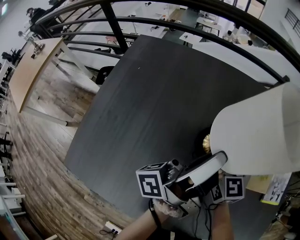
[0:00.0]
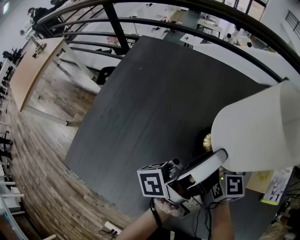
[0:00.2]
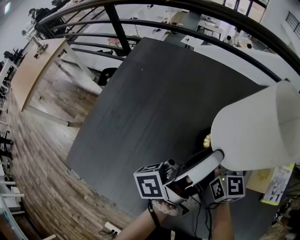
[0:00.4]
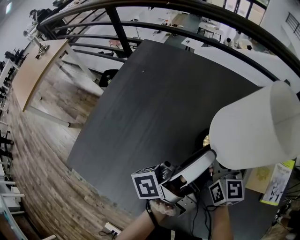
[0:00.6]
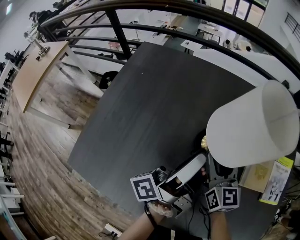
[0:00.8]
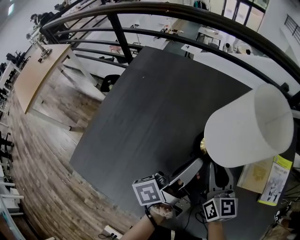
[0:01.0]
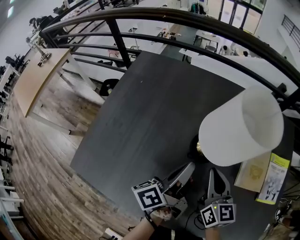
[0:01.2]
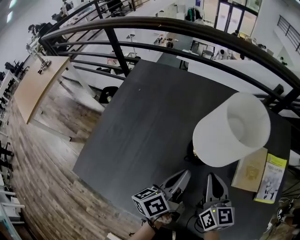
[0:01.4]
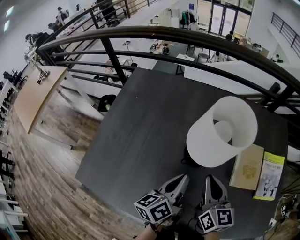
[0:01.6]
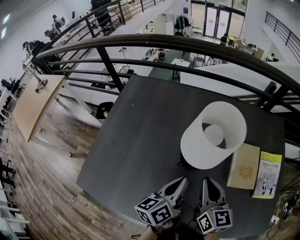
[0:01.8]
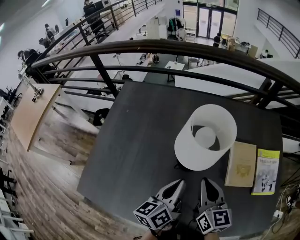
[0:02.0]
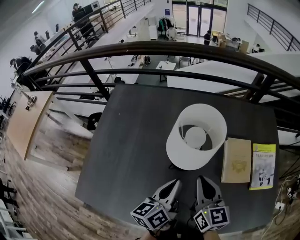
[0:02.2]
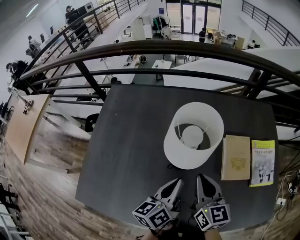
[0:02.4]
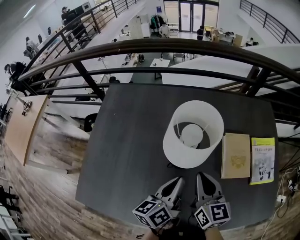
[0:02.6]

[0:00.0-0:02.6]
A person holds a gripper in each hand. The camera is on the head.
0:00.0 to 0:01.2: The right gripper ends up approximately 10 cm from where it was, and closes its fingers.
0:01.2 to 0:02.6: The right gripper shifts approximately 5 cm upward.

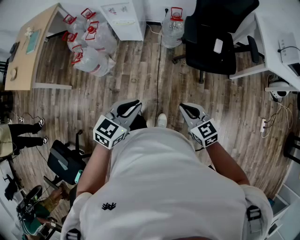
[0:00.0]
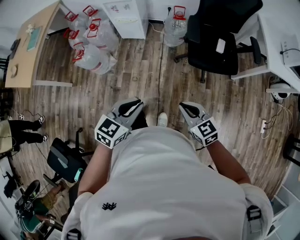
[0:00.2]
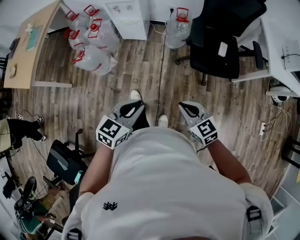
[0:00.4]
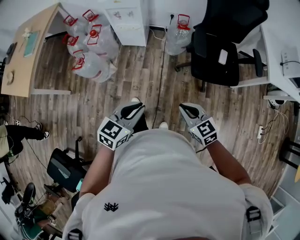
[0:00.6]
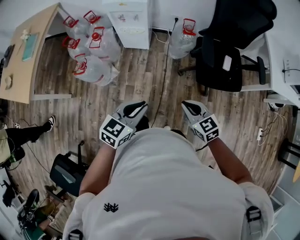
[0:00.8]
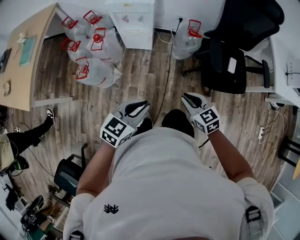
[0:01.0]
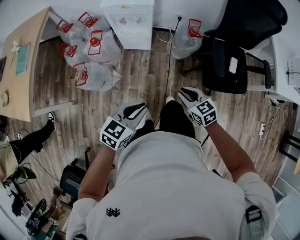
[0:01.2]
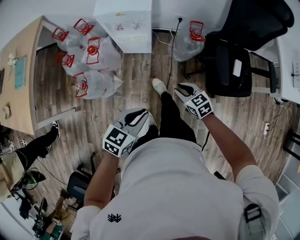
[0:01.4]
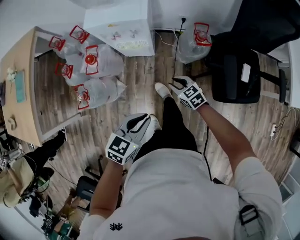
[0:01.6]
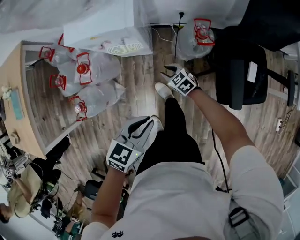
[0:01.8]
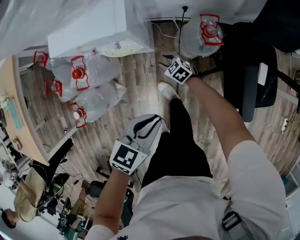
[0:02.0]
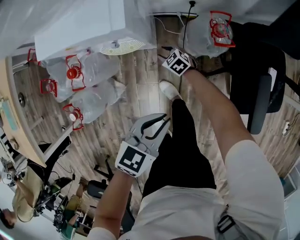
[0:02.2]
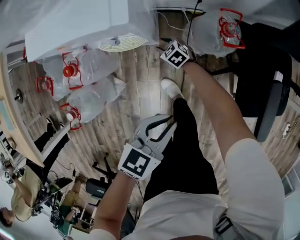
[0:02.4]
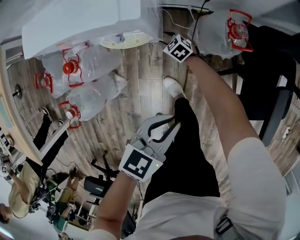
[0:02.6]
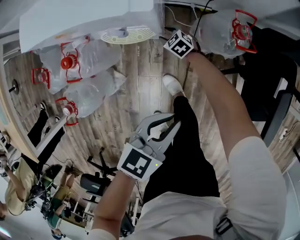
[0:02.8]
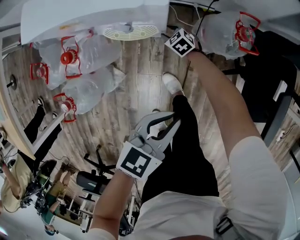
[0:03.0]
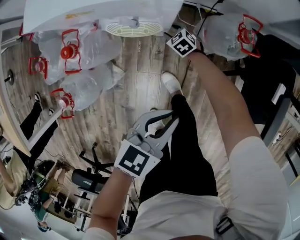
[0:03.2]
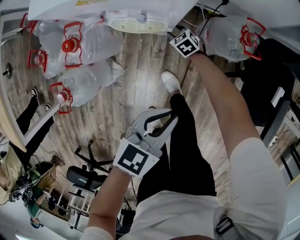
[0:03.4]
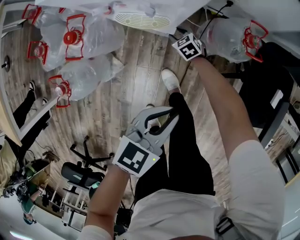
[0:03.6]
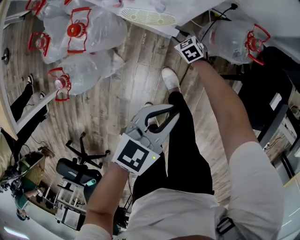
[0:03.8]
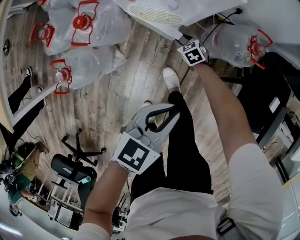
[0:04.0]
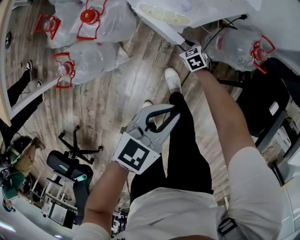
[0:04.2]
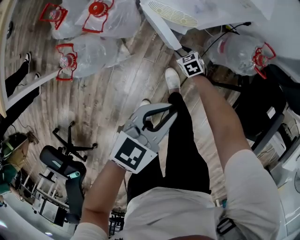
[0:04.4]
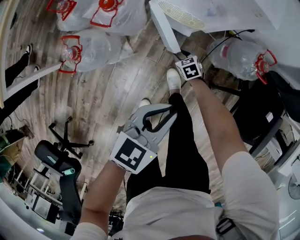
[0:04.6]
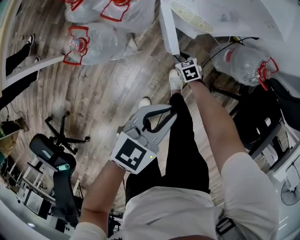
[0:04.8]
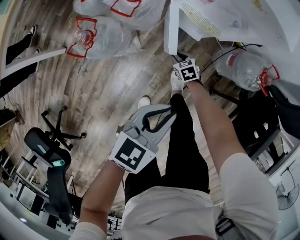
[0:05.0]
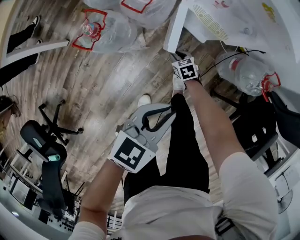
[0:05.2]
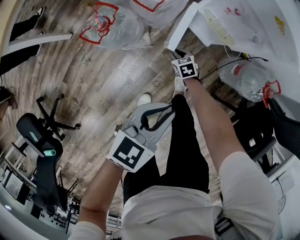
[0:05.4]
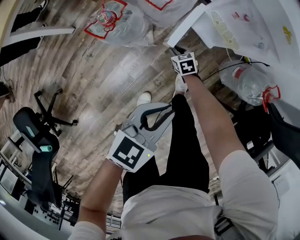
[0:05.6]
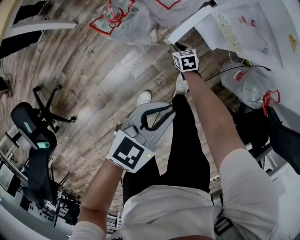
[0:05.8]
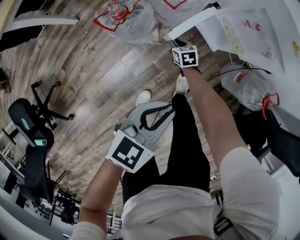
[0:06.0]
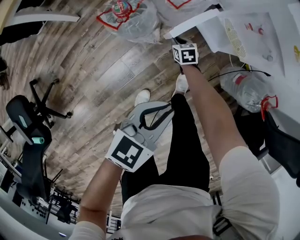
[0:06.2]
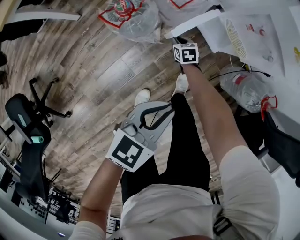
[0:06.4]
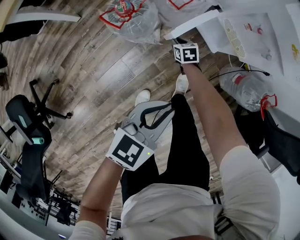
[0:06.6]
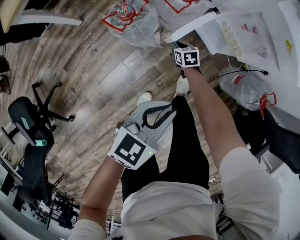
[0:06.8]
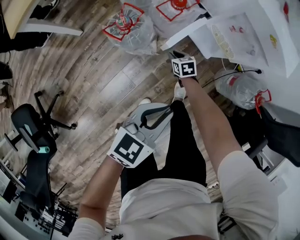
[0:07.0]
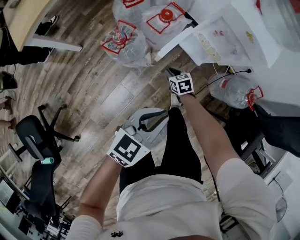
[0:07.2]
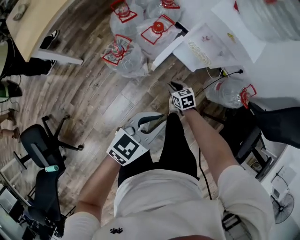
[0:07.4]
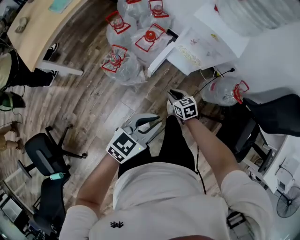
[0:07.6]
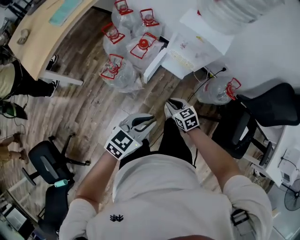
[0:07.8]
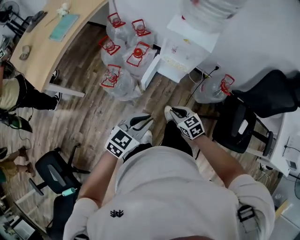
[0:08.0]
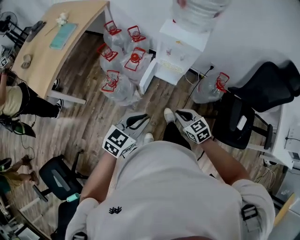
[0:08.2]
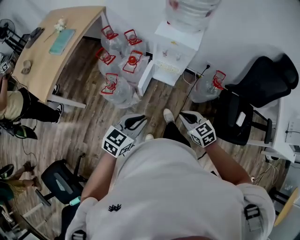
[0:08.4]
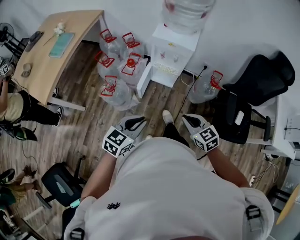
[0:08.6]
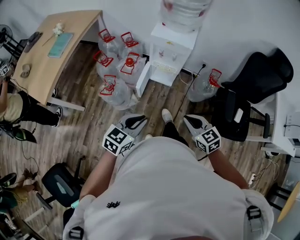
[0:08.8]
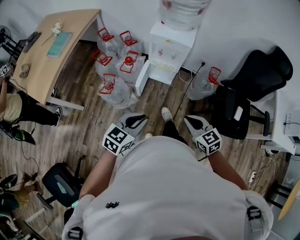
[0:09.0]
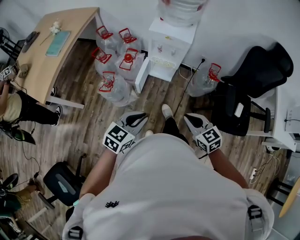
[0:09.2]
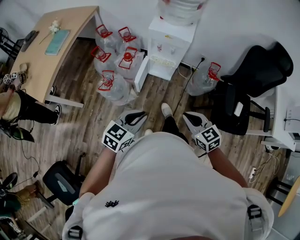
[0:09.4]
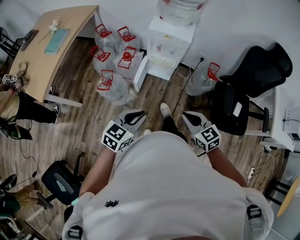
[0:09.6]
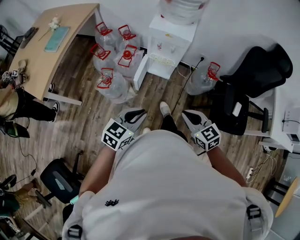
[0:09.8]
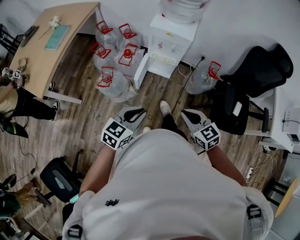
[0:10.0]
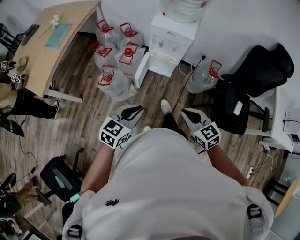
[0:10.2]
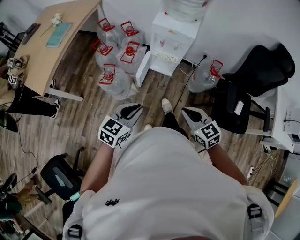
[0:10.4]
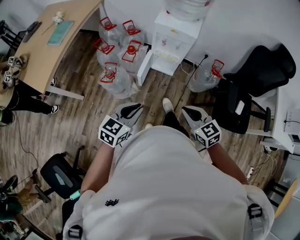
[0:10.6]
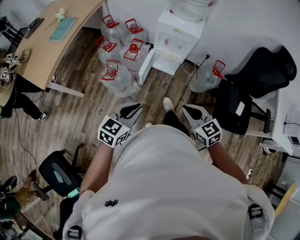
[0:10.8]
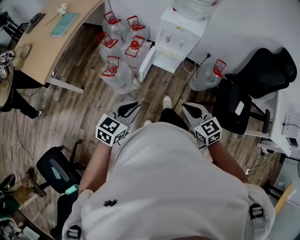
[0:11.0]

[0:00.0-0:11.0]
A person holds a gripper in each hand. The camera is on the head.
0:00.0 to 0:01.6: The left gripper travels forward and to the left by approximately 40 cm, while the right gripper shifts about 60 cm forward, downward and to the left, and opens.
0:01.6 to 0:03.2: The left gripper heads downward and forward, covering roughly 20 cm. The right gripper travels downward and forward by about 40 cm.
0:03.2 to 0:04.8: The right gripper heads backward and to the left, covering some 20 cm; the left gripper is displaced to the left and backward by some 15 cm, and swivels some 20 degrees.
0:04.8 to 0:06.2: Both grippers move to the left, about 15 cm.
0:06.2 to 0:07.8: The left gripper moves upward and backward, approximately 20 cm, and changes its angle by about 20 degrees. Meanwhile the right gripper travels upward and backward by roughly 40 cm.
0:07.8 to 0:09.4: The right gripper is displaced upward, backward and to the right by about 30 cm, and swivels approximately 20 degrees, while the left gripper moves backward and upward, approximately 10 cm.
0:09.4 to 0:11.0: The right gripper shifts by approximately 5 cm. The left gripper shifts roughly 5 cm to the left.

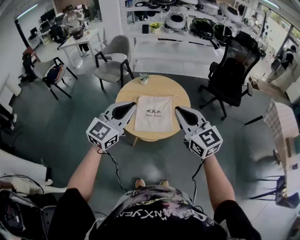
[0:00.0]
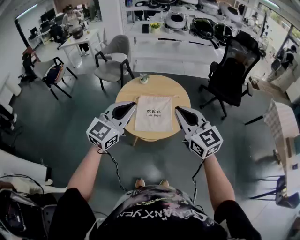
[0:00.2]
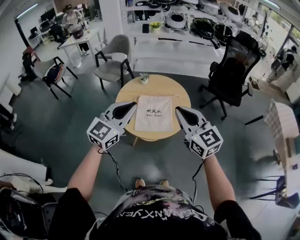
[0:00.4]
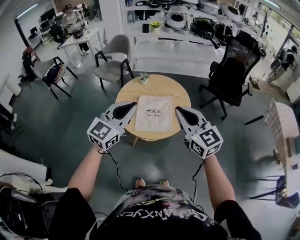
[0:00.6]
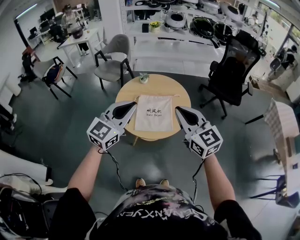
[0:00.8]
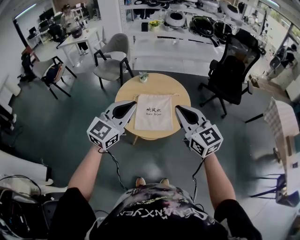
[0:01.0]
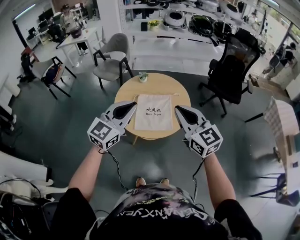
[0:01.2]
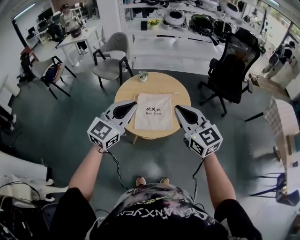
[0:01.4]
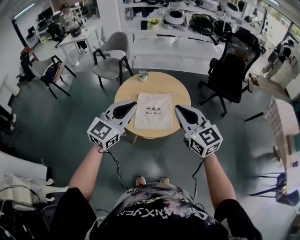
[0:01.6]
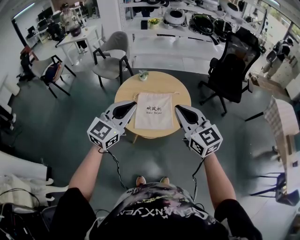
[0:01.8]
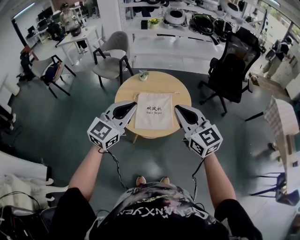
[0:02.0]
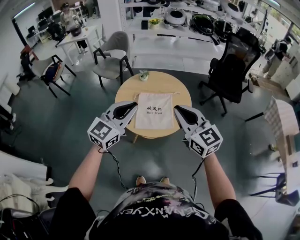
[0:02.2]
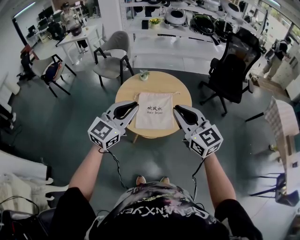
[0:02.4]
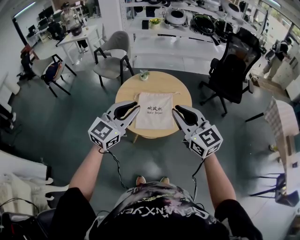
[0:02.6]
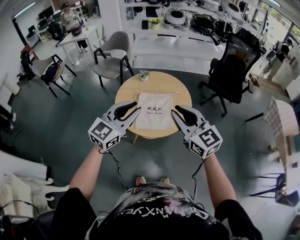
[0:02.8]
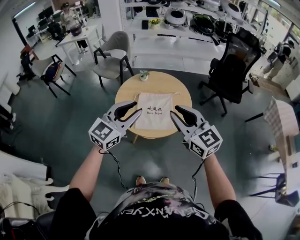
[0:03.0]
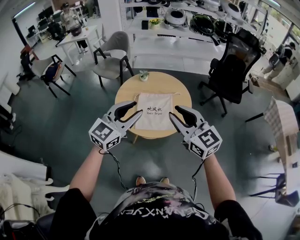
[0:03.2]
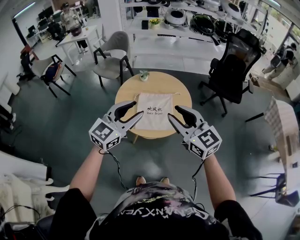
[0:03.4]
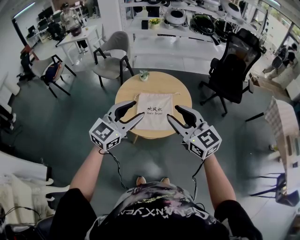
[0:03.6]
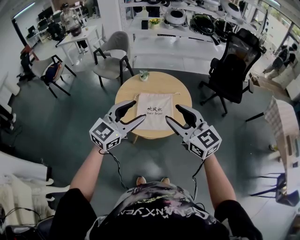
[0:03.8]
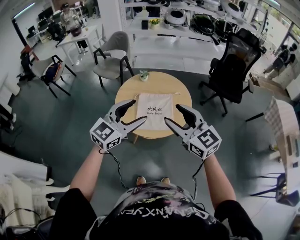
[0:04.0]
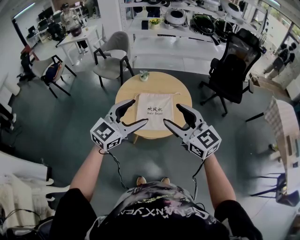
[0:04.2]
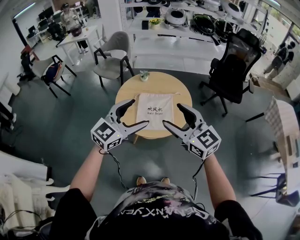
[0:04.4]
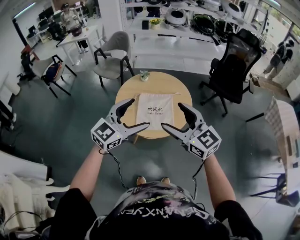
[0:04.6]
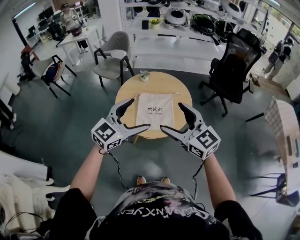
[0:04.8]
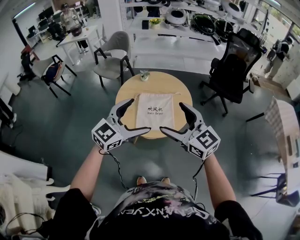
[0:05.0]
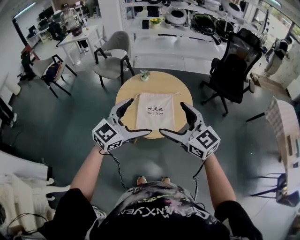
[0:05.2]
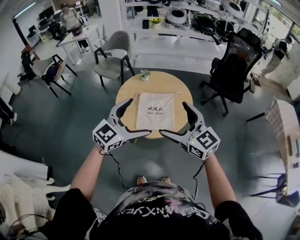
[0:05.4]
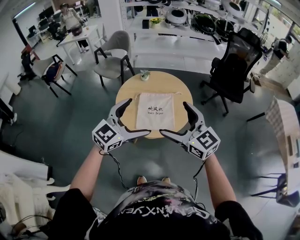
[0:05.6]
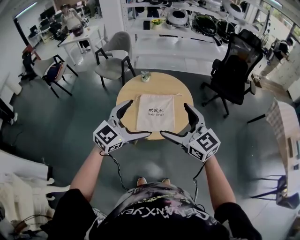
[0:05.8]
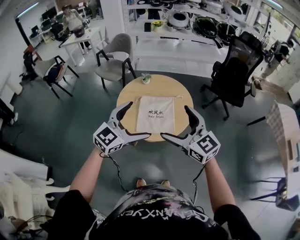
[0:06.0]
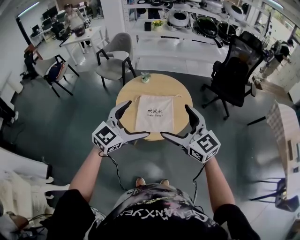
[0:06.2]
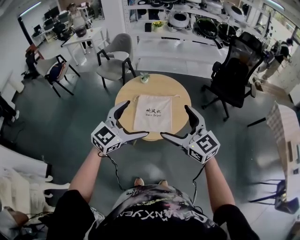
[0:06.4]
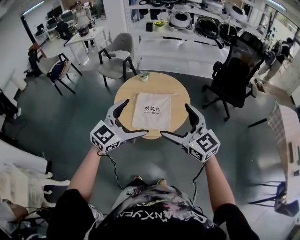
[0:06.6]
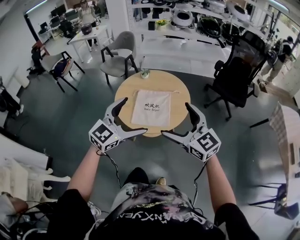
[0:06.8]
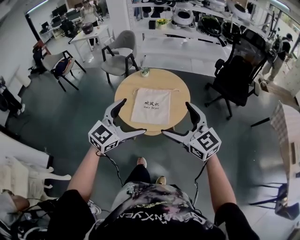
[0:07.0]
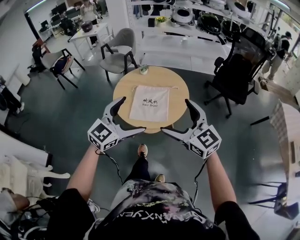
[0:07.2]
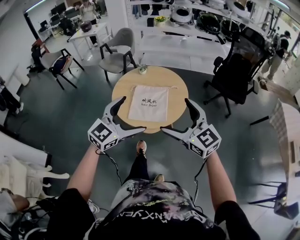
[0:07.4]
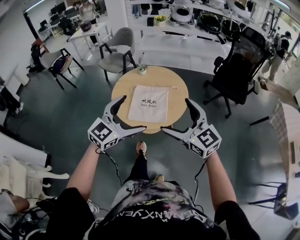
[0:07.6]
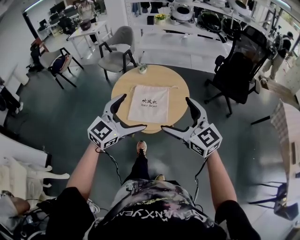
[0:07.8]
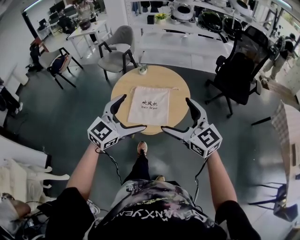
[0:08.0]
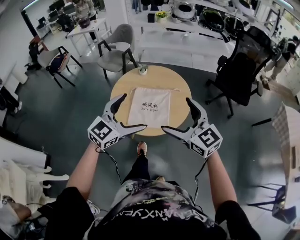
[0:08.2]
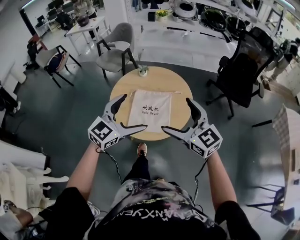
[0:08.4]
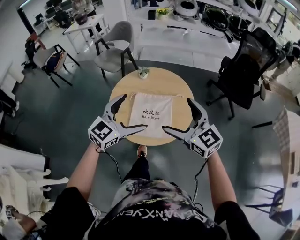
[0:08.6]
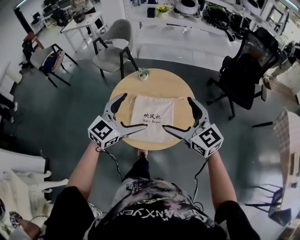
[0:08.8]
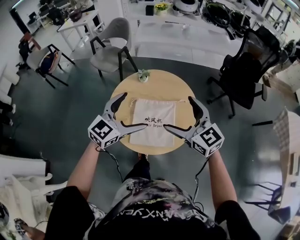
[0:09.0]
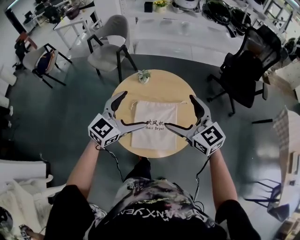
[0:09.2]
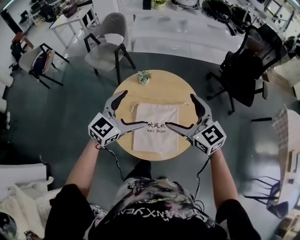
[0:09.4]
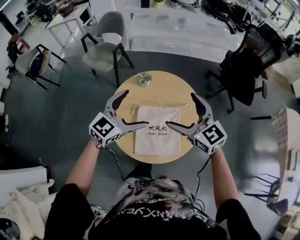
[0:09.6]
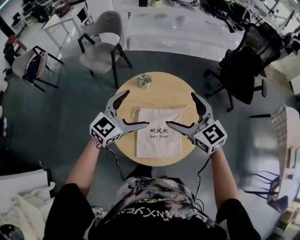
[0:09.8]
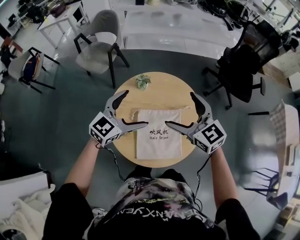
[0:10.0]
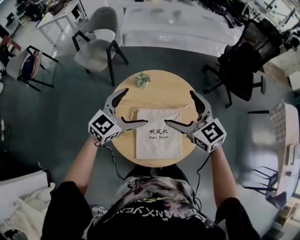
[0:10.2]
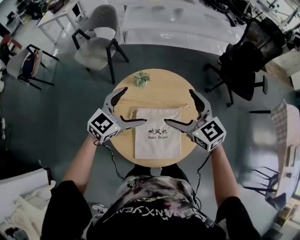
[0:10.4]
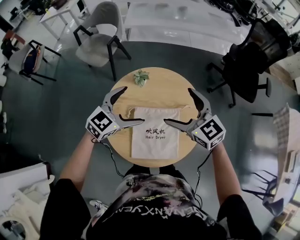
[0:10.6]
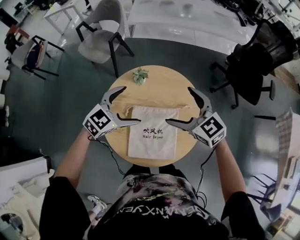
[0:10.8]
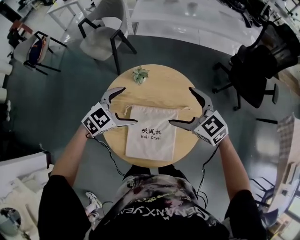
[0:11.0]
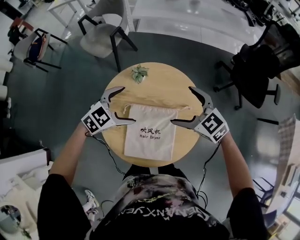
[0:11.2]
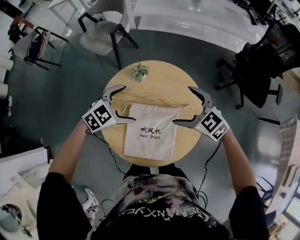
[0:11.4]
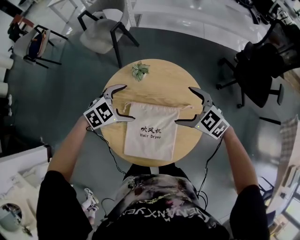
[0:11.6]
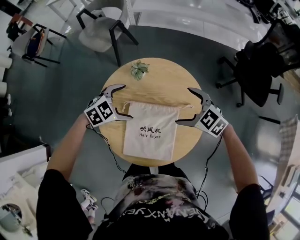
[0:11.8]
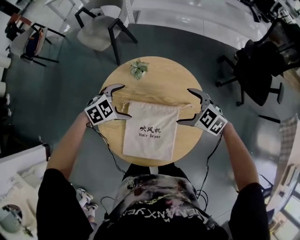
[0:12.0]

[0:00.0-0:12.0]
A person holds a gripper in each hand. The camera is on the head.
0:00.0 to 0:03.0: The grippers move only a little.
0:03.0 to 0:04.4: The right gripper opens up, while the left gripper opens.
0:04.4 to 0:06.0: The right gripper opens up.
0:06.0 to 0:07.6: Both grippers travel together to the right, roughly 5 cm.
0:07.6 to 0:09.0: Both grippers travel together forward, approximately 25 cm.
0:09.0 to 0:10.4: The left gripper moves forward and downward, approximately 15 cm. The right gripper travels forward by some 15 cm.
0:10.4 to 0:12.0: The two grippers go approximately 20 cm downward. The right gripper changes its angle by roughly 40 degrees. The left gripper points its fingers roughly 40 degrees further downward.
